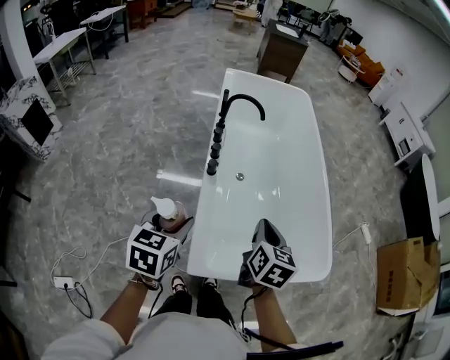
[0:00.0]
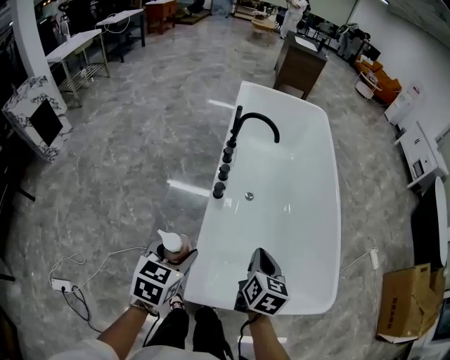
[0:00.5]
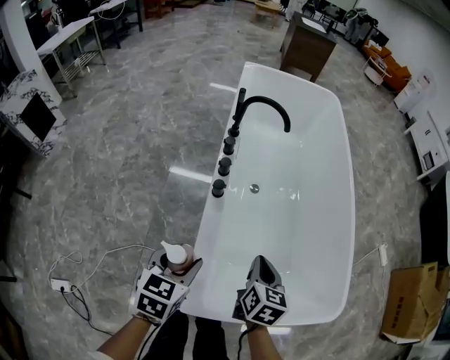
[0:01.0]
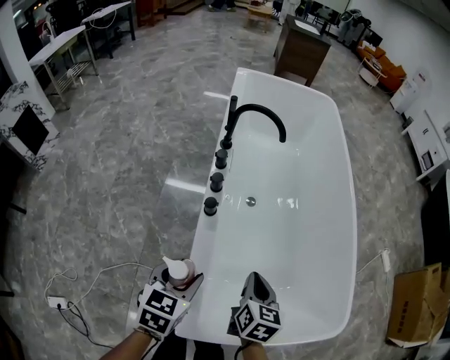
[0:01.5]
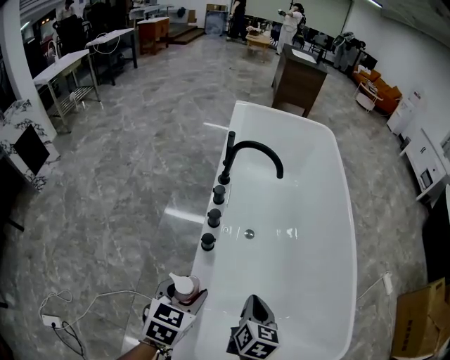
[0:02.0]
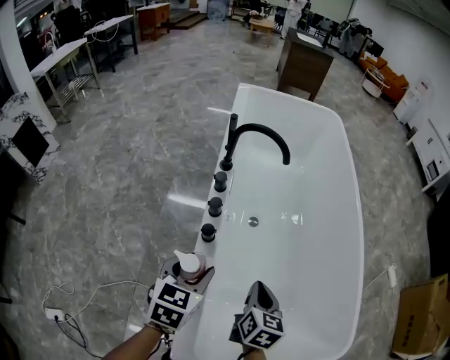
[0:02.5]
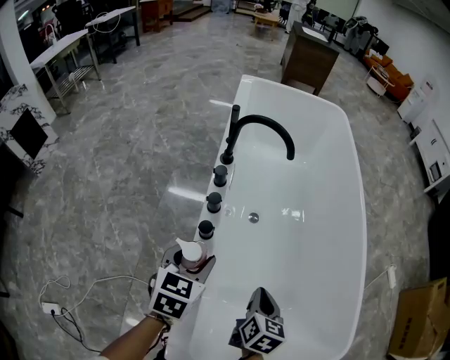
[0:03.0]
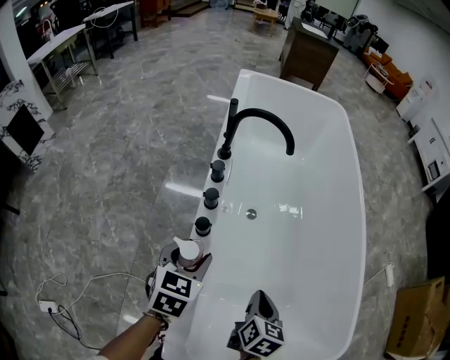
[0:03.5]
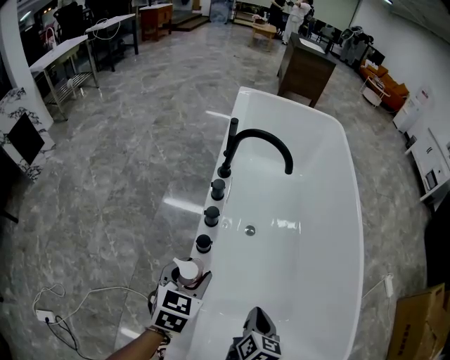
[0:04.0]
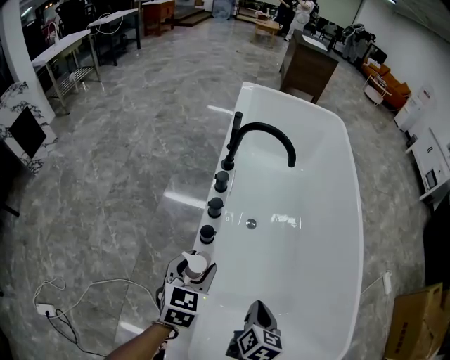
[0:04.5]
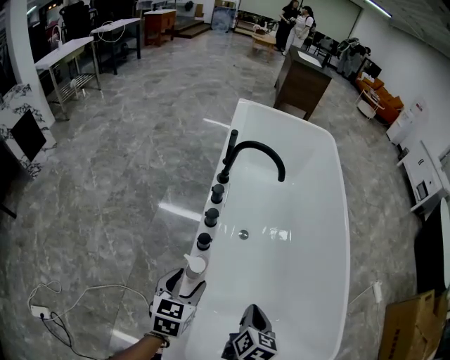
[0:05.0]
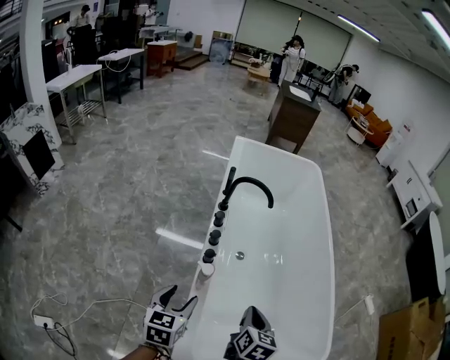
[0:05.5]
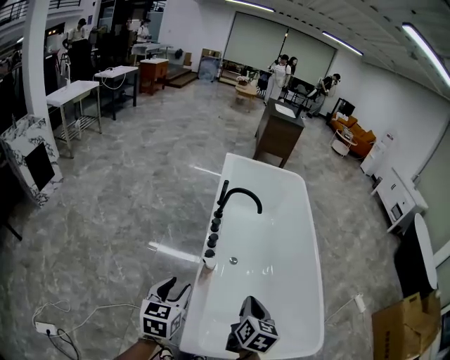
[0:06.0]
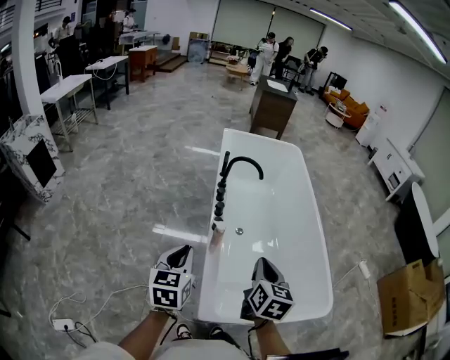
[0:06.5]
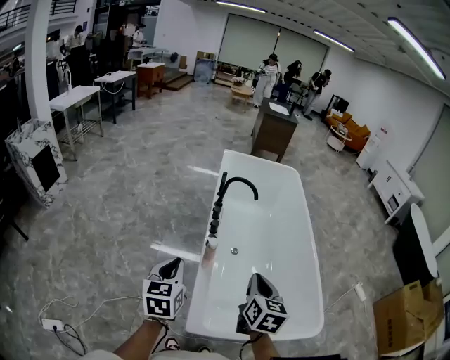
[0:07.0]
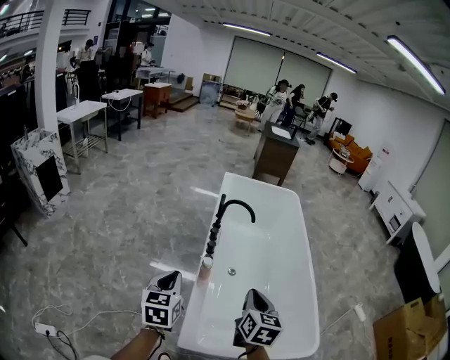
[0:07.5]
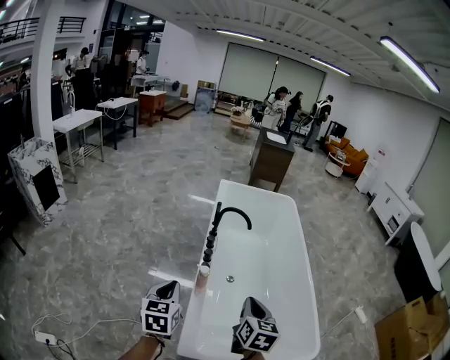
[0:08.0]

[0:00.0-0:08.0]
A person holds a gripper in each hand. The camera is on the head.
0:00.0 to 0:02.0: Both grippers move downward and forward, some 20 cm.
0:02.0 to 0:04.0: The left gripper heads forward, covering roughly 10 cm. The right gripper is displaced downward by some 5 cm.
0:04.0 to 0:06.0: The left gripper goes about 25 cm upward and backward, while the right gripper is displaced upward by some 25 cm.
0:06.0 to 0:08.0: The right gripper heads upward, covering some 5 cm. Meanwhile the left gripper closes its fingers.

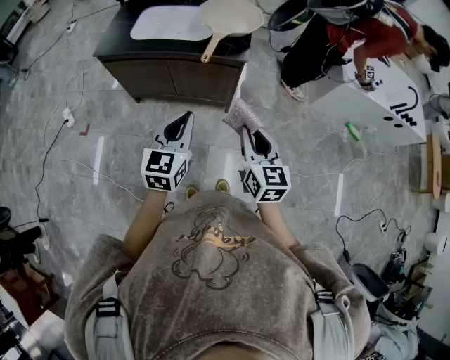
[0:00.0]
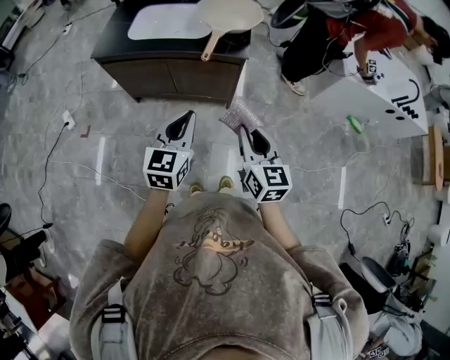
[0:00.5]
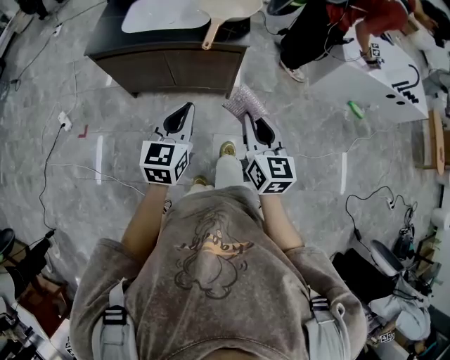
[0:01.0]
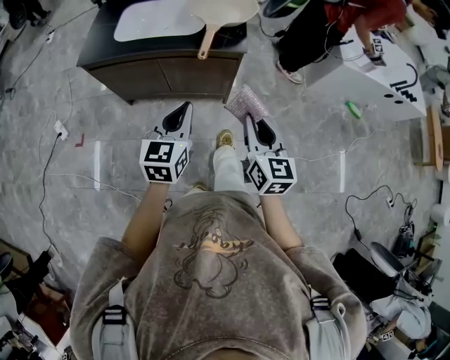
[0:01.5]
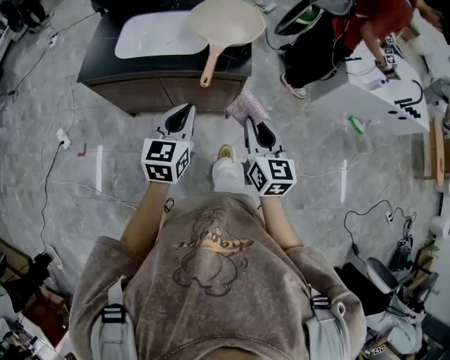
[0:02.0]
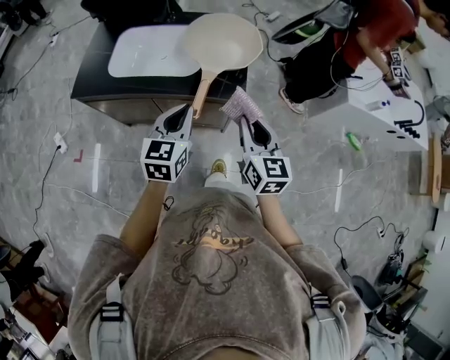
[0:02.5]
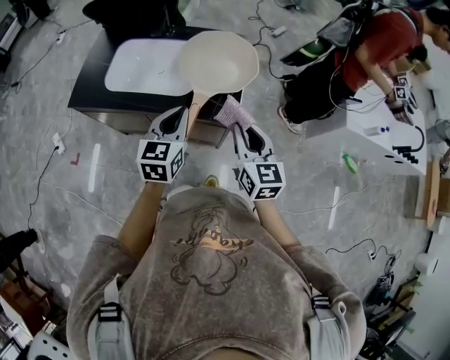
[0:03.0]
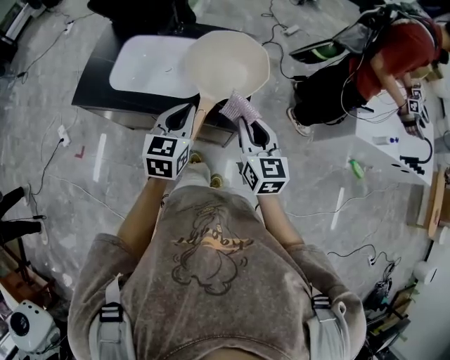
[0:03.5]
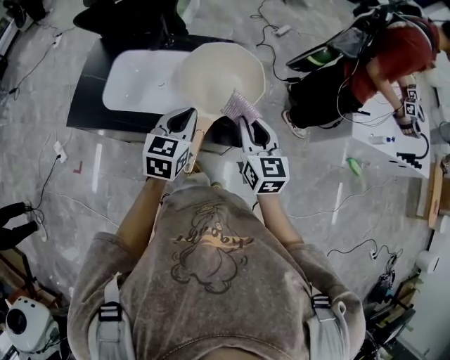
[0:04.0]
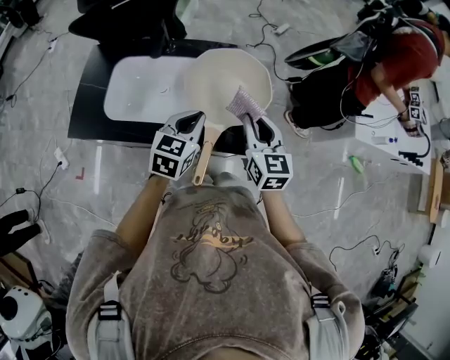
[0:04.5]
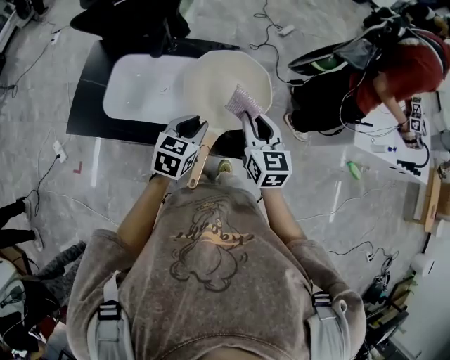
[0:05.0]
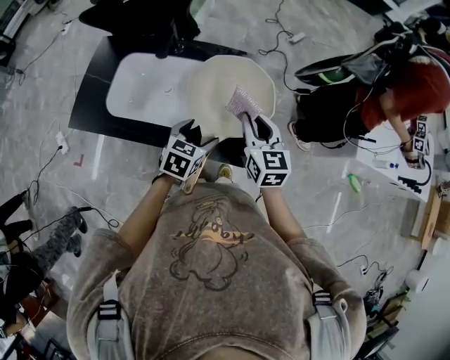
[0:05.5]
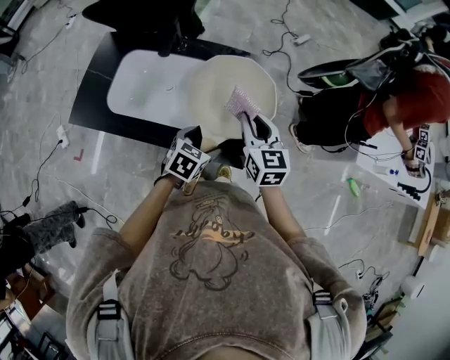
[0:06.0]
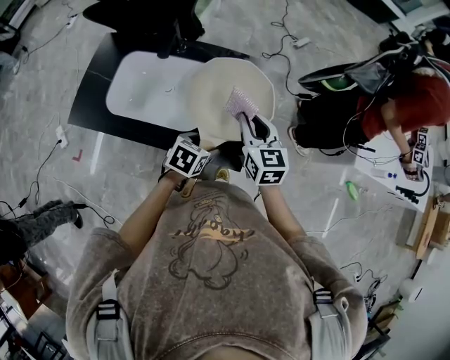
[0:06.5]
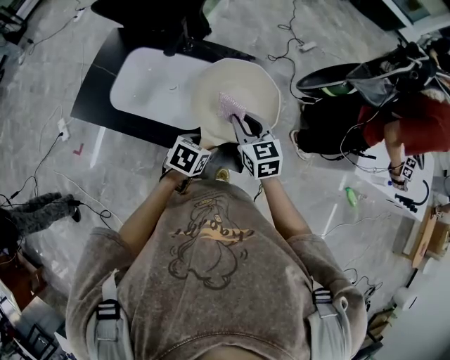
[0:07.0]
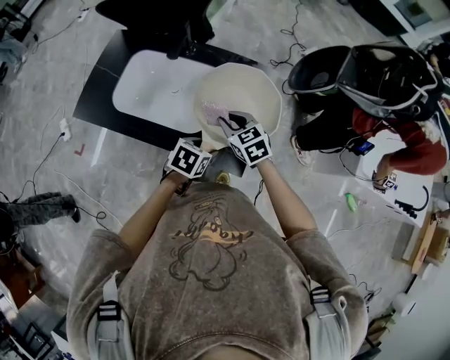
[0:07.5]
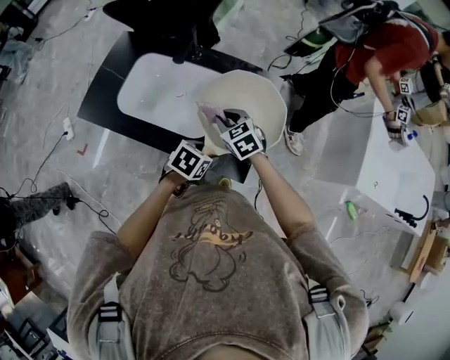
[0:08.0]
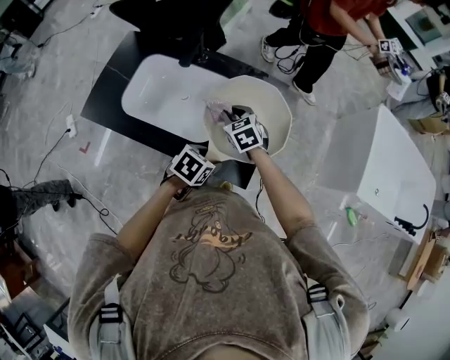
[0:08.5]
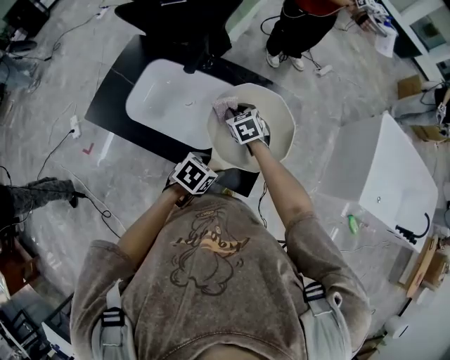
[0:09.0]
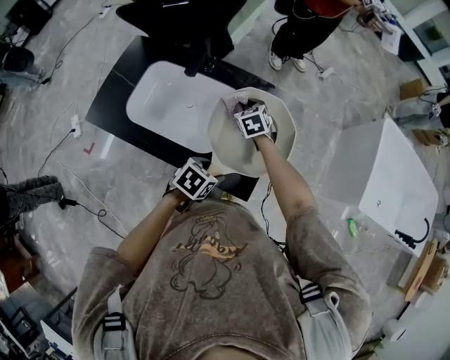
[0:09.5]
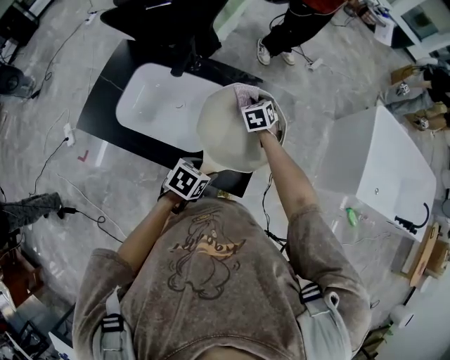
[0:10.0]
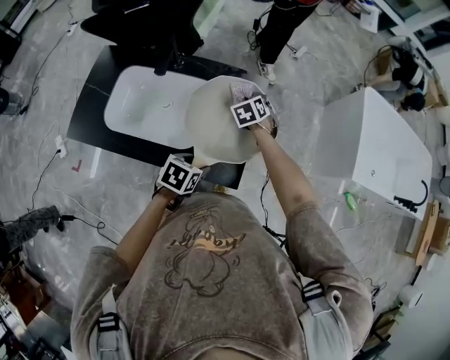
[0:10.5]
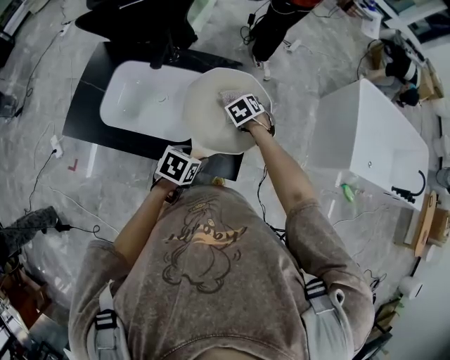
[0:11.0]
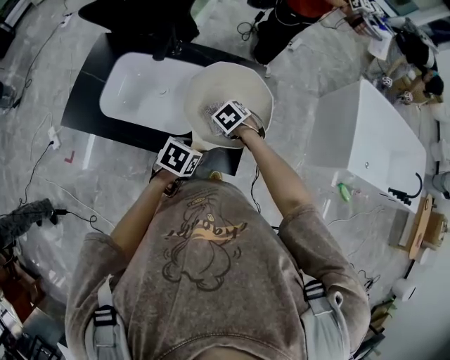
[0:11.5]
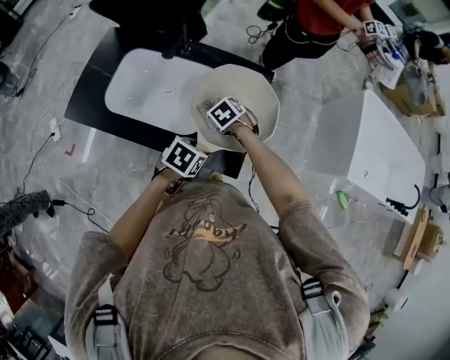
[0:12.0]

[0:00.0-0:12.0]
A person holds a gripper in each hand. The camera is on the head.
0:00.0 to 0:02.0: Both grippers move forward, roughly 15 cm.
0:02.0 to 0:04.0: The two grippers go some 30 cm forward.
0:04.0 to 0:06.0: The left gripper heads downward, covering approximately 15 cm, rotates about 30 degrees, and opens. Meanwhile the right gripper travels forward by roughly 10 cm.
0:06.0 to 0:08.0: The right gripper moves to the left and downward, approximately 15 cm, and rotates roughly 40 degrees. The left gripper closes up.
0:08.0 to 0:10.0: The right gripper moves forward, roughly 15 cm, and turns by approximately 30 degrees.
0:10.0 to 0:12.0: The right gripper shifts by some 15 cm, and swivels some 30 degrees.

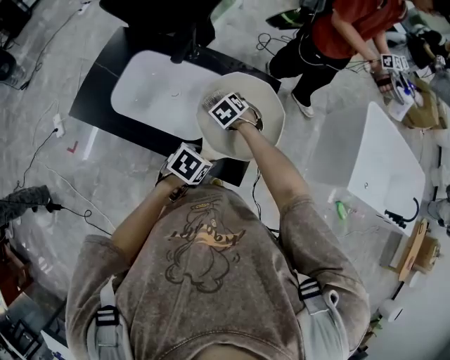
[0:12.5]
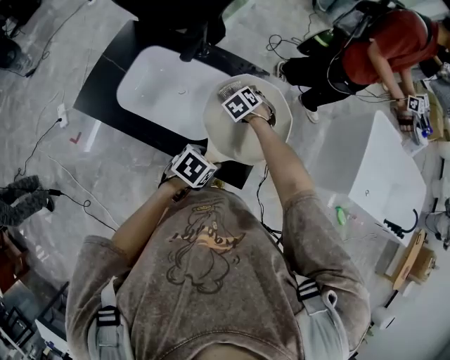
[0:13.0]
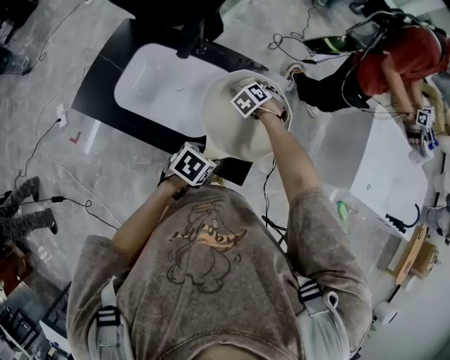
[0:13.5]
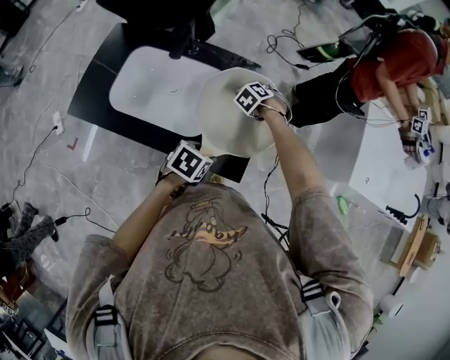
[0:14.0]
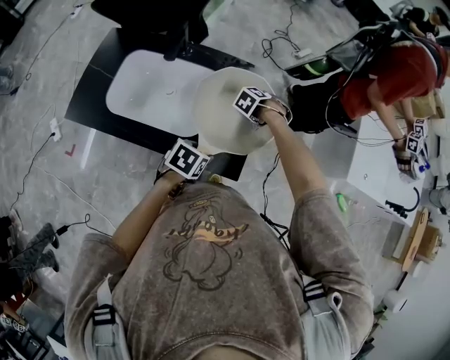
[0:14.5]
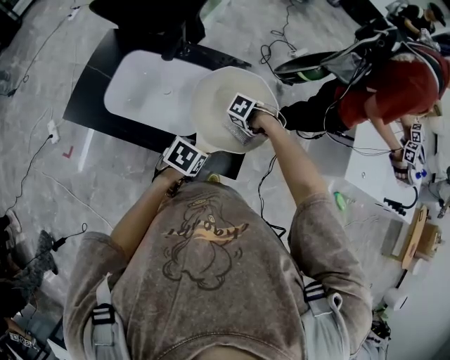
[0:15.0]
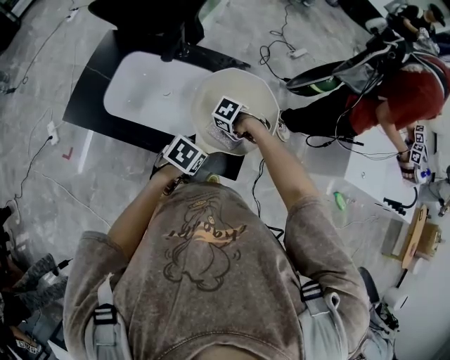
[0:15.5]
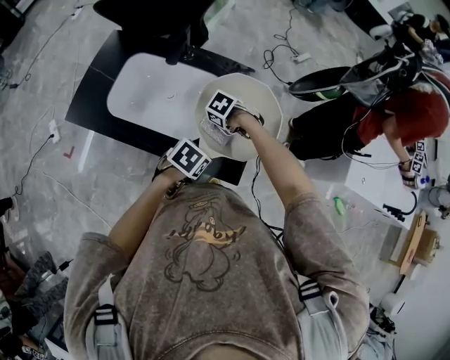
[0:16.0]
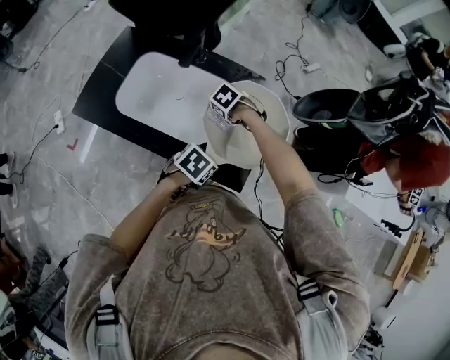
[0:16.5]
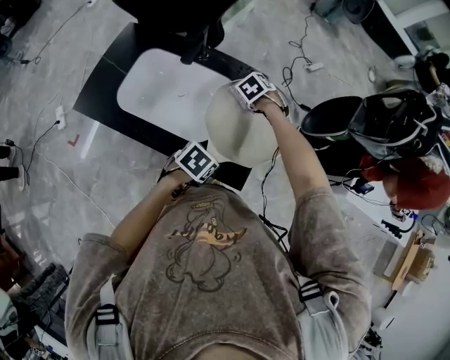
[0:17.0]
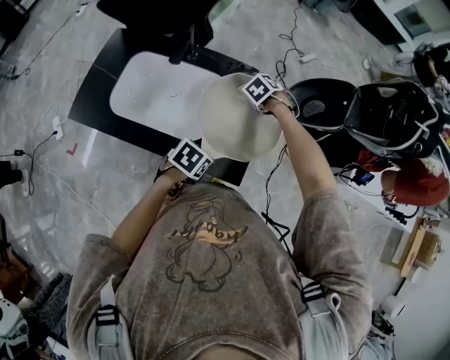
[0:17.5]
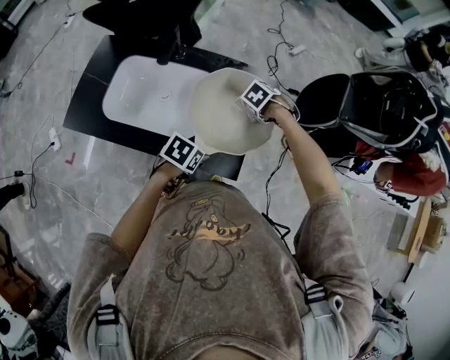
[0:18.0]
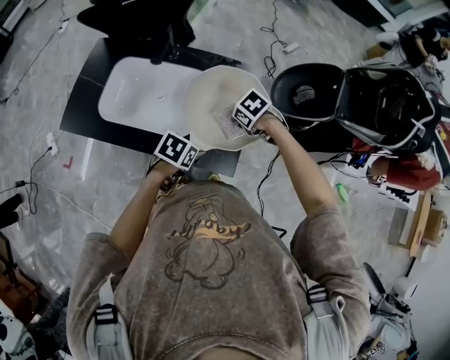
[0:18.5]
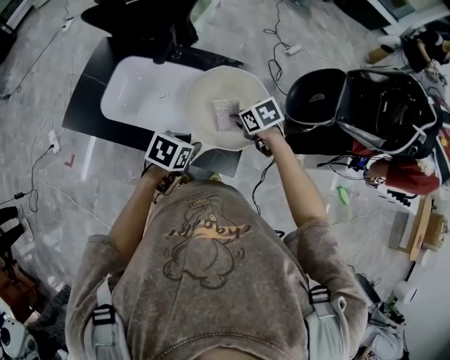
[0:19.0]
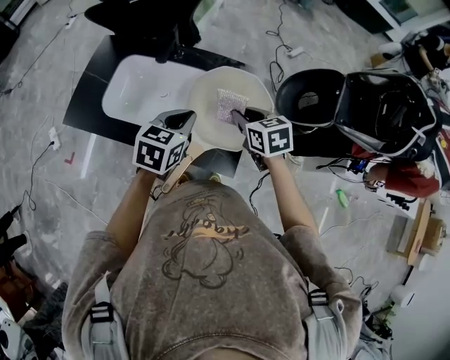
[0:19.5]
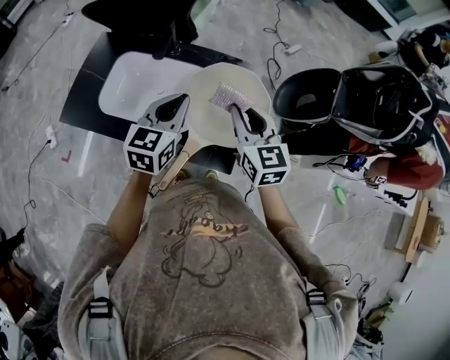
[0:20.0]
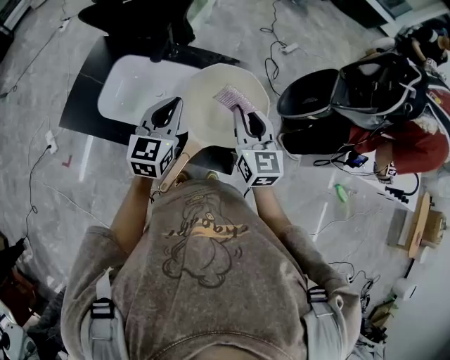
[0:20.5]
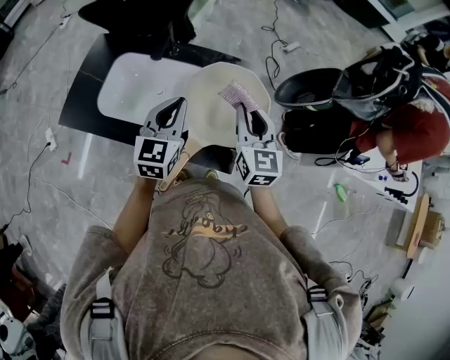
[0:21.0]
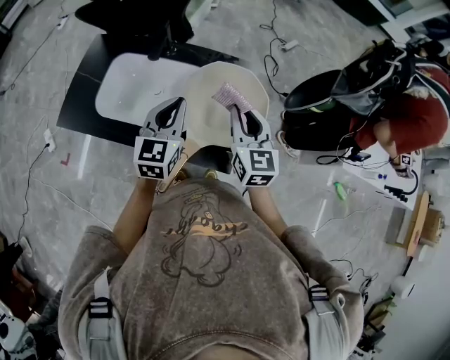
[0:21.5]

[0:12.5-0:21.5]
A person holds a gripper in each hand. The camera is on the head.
0:12.5 to 0:14.5: The right gripper moves approximately 15 cm, and turns by some 30 degrees.
0:14.5 to 0:17.0: The right gripper shifts by approximately 15 cm.
0:17.0 to 0:19.5: The left gripper shifts some 15 cm upward, changes its angle by approximately 40 degrees, and closes up. The right gripper moves roughly 20 cm, and points its fingers roughly 30 degrees further upward.
0:19.5 to 0:21.5: The right gripper travels upward by about 5 cm, and tilts its fingers about 30 degrees upward; the left gripper swivels approximately 30 degrees.
